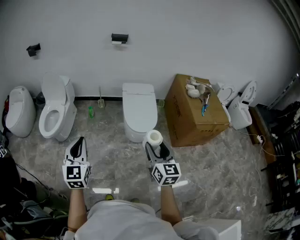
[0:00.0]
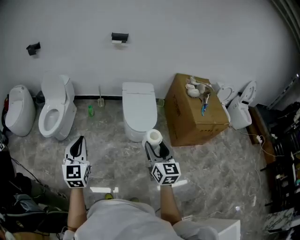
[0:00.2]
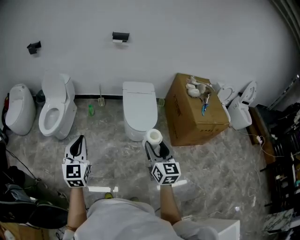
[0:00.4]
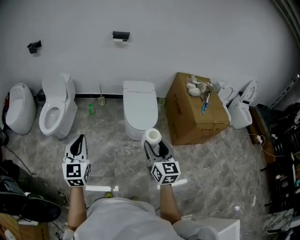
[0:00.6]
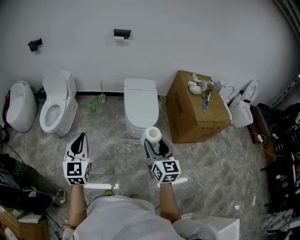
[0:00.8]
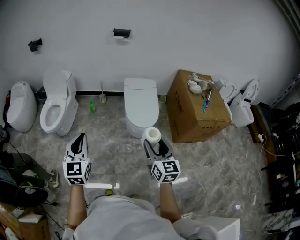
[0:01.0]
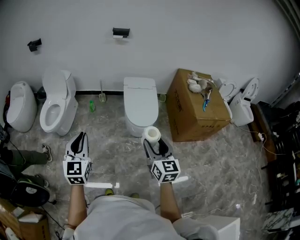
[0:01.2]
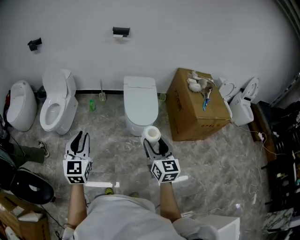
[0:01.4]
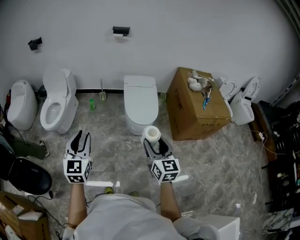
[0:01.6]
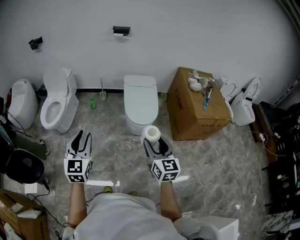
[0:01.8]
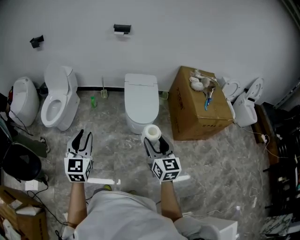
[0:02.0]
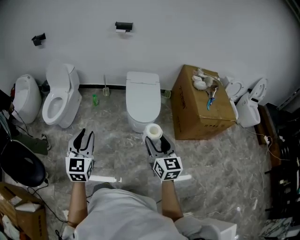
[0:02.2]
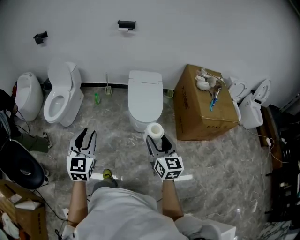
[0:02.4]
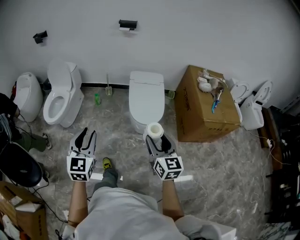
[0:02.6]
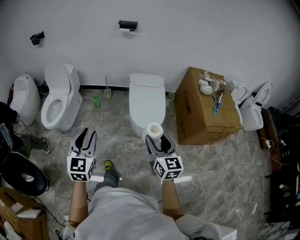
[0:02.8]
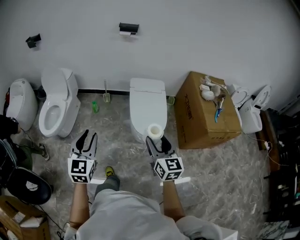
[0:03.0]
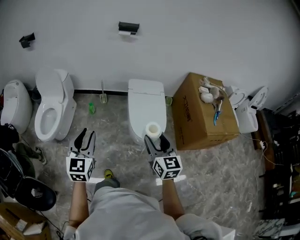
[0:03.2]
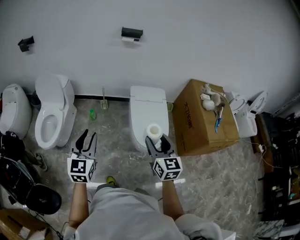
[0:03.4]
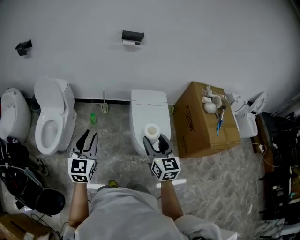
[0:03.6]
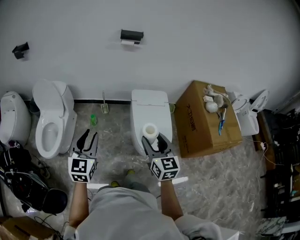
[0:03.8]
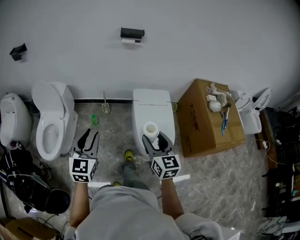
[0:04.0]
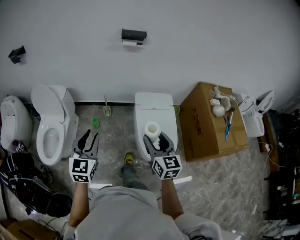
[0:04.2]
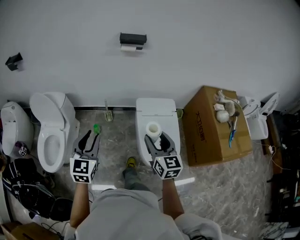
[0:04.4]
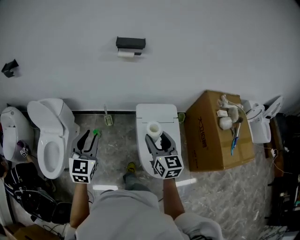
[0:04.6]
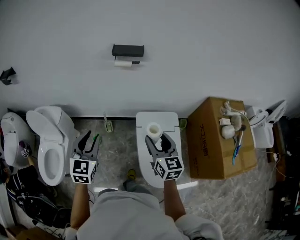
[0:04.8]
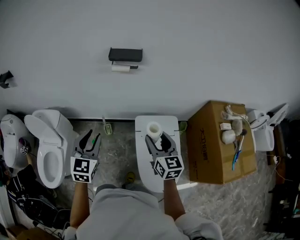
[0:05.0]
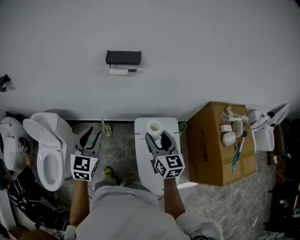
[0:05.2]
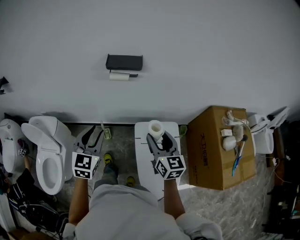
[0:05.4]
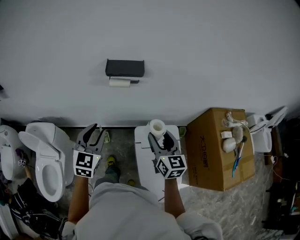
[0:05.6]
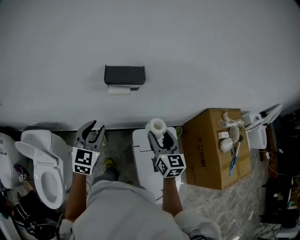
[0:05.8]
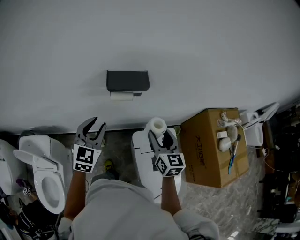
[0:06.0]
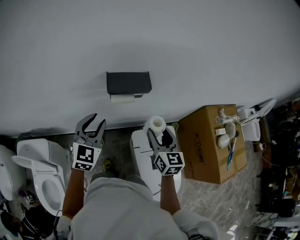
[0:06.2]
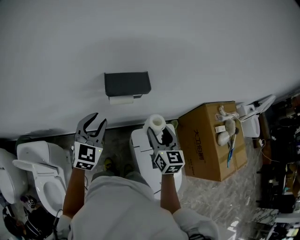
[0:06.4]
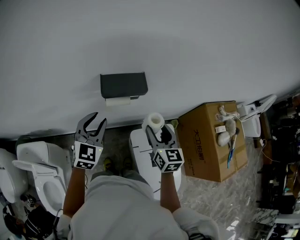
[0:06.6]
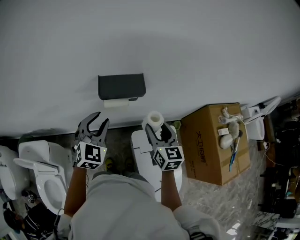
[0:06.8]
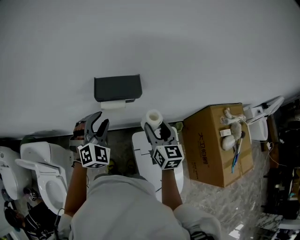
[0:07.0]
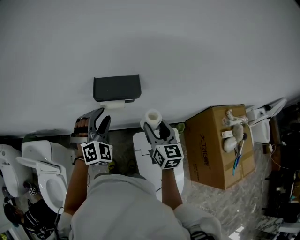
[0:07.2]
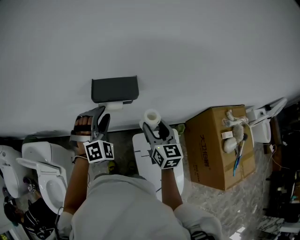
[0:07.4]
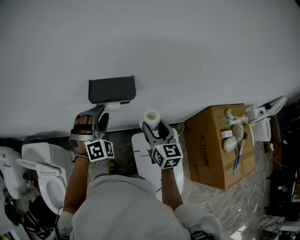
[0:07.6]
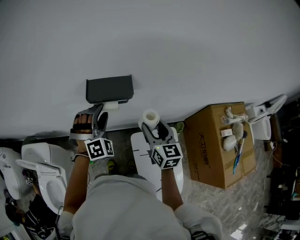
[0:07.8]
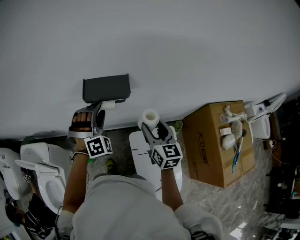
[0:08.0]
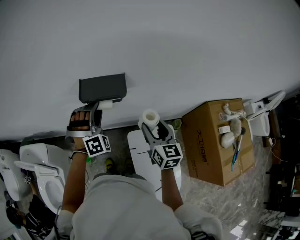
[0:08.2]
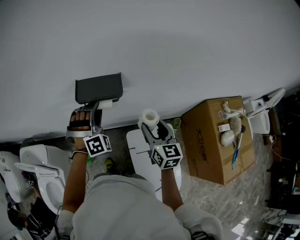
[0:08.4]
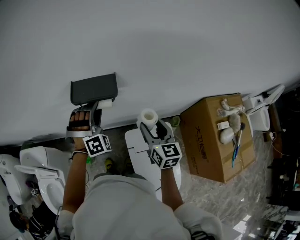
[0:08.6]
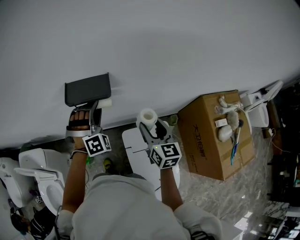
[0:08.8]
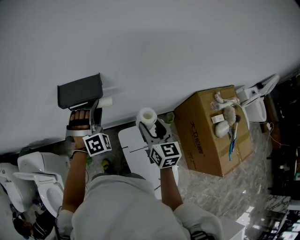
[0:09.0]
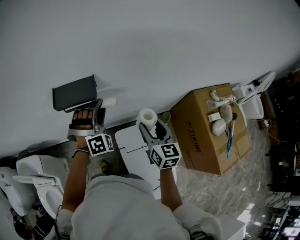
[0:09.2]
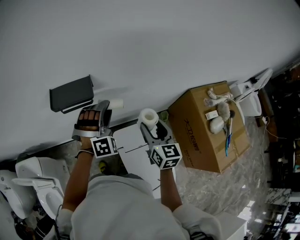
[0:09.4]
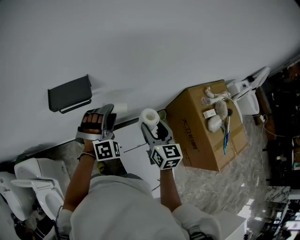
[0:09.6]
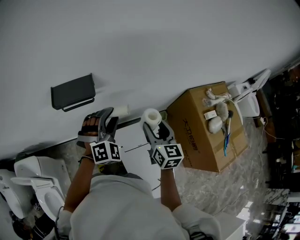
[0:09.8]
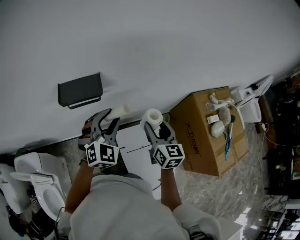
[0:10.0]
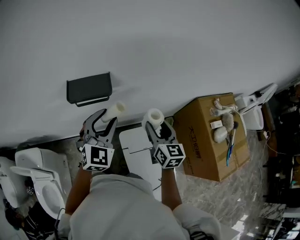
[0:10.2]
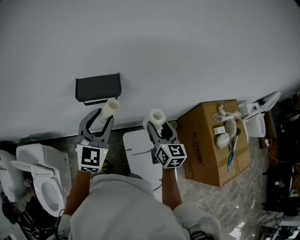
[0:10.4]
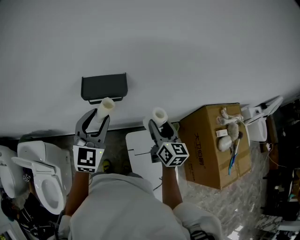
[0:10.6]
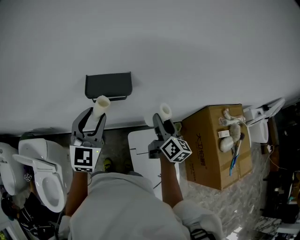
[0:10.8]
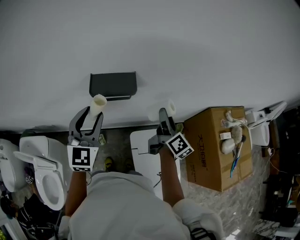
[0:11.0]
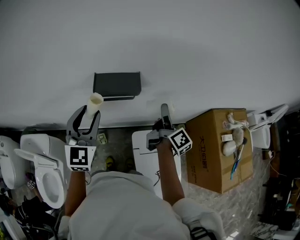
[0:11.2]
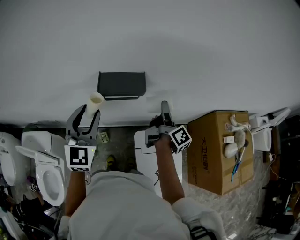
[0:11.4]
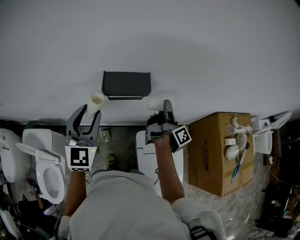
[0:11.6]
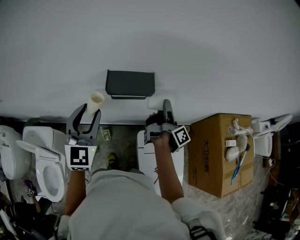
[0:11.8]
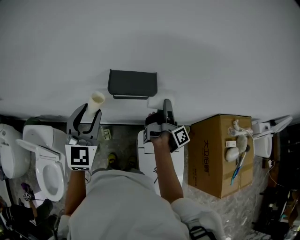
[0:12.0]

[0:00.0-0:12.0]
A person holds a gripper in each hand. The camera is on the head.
0:00.0 to 0:01.6: The left gripper opens up.
0:01.6 to 0:03.0: The two grippers go some 20 cm forward.
0:03.0 to 0:04.4: Both grippers move forward, roughly 40 cm.
0:04.4 to 0:06.0: The two grippers travel together, forward, some 50 cm.
0:06.0 to 0:07.6: The right gripper moves forward, some 10 cm. Meanwhile the left gripper heads forward and to the right, covering about 15 cm, and twists roughly 60 degrees clockwise, seen from behind.
0:07.6 to 0:09.0: Both grippers move to the right, about 10 cm.
0:09.0 to 0:10.4: The left gripper moves upward and backward, about 10 cm, travels to the right and back again, about 10 cm each way, and twists some 60 degrees counterclockwise, seen from behind.
0:10.4 to 0:12.0: The left gripper heads to the left, covering approximately 15 cm, while the right gripper goes roughly 10 cm to the left and forward, and twists some 80 degrees clockwise, seen from behind.

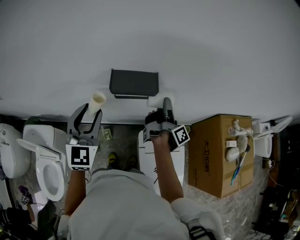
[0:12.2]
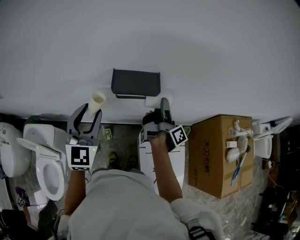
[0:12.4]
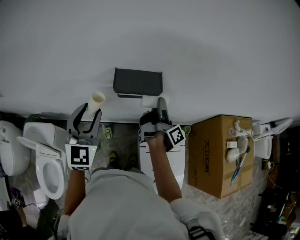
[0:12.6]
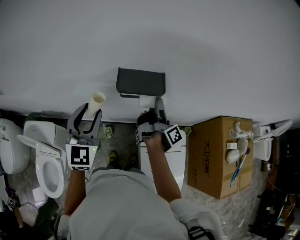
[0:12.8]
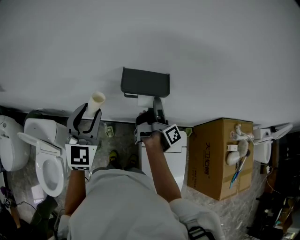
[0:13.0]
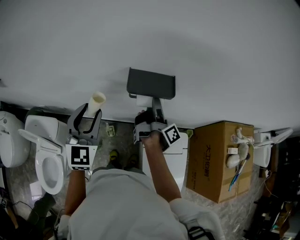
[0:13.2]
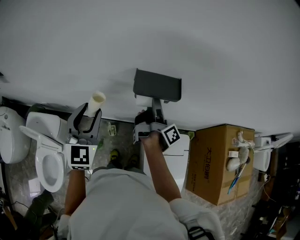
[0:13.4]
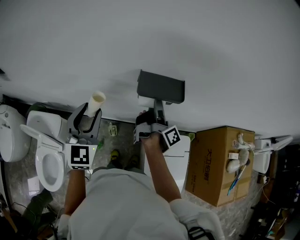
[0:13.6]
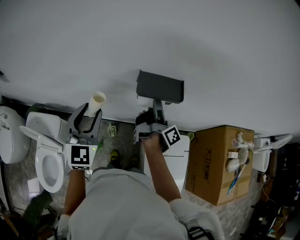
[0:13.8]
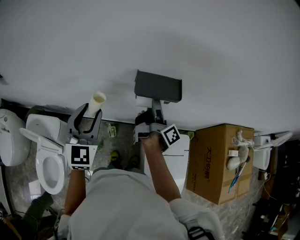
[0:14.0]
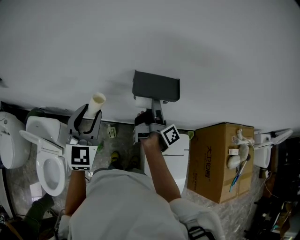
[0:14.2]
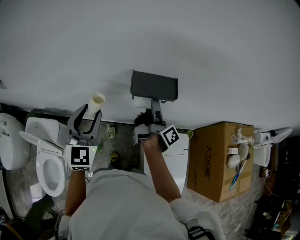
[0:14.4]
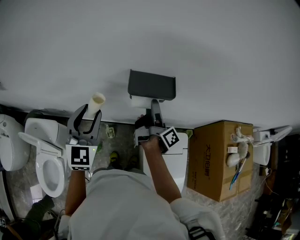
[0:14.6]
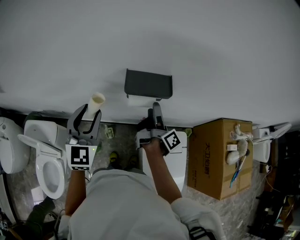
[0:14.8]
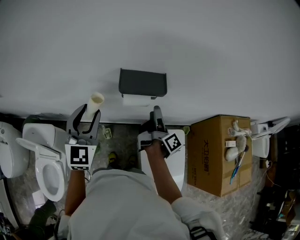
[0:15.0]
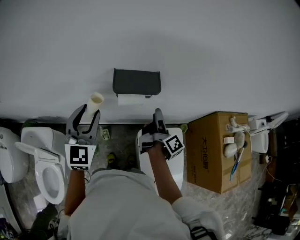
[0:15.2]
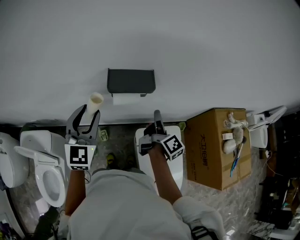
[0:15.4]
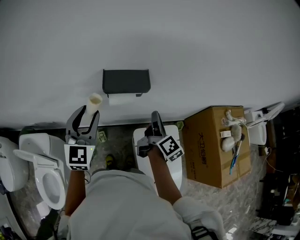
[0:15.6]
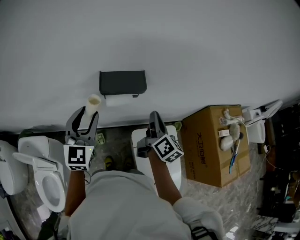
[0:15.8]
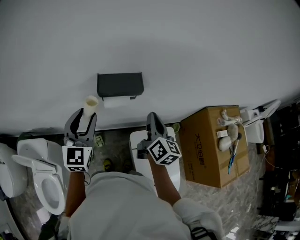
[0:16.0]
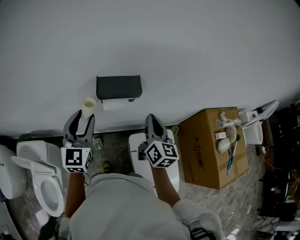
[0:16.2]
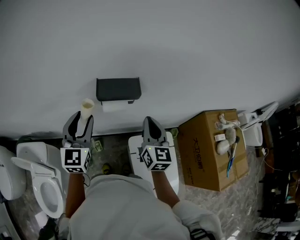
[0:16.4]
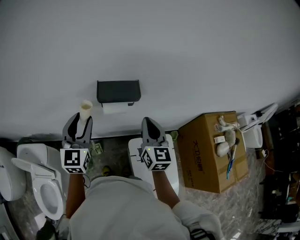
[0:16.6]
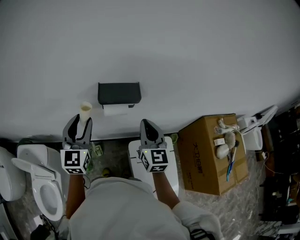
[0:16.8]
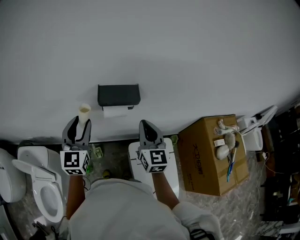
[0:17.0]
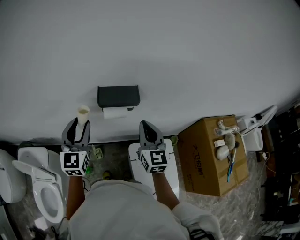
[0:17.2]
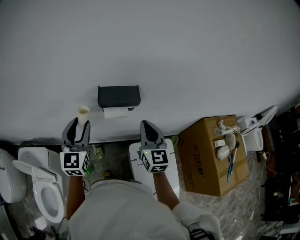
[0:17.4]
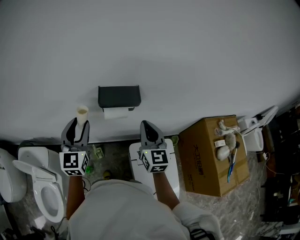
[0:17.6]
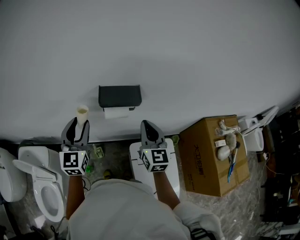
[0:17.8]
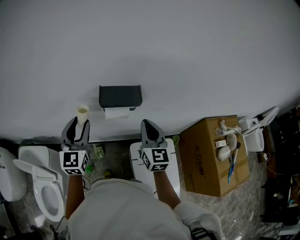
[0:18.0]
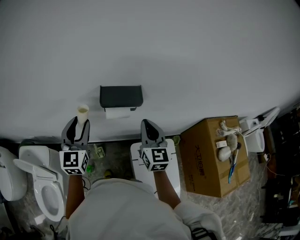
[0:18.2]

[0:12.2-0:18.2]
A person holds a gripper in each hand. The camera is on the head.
0:12.2 to 0:13.8: The right gripper heads to the left, covering about 15 cm; the left gripper moves to the left, roughly 10 cm.
0:13.8 to 0:15.2: The right gripper travels to the right and backward by roughly 10 cm. The left gripper goes approximately 5 cm to the right.
0:15.2 to 0:16.6: The right gripper shifts some 10 cm upward, twists roughly 80 degrees counterclockwise, seen from behind, and closes.
0:16.6 to 0:18.2: There are only small adjustments of the grippers.

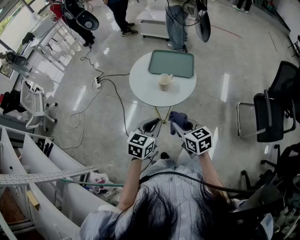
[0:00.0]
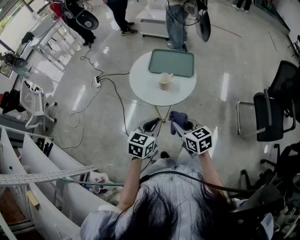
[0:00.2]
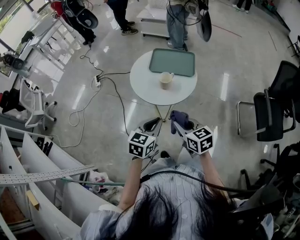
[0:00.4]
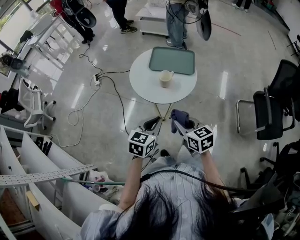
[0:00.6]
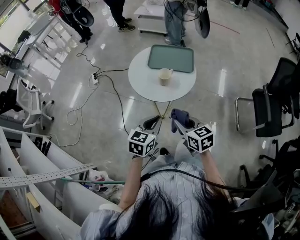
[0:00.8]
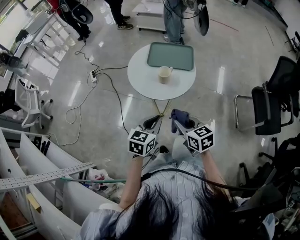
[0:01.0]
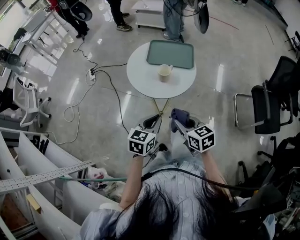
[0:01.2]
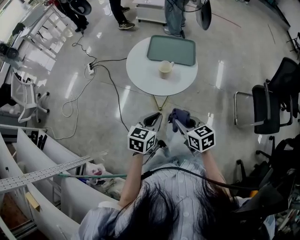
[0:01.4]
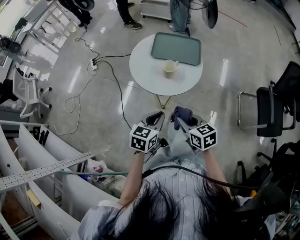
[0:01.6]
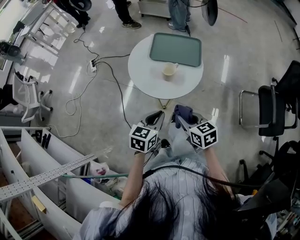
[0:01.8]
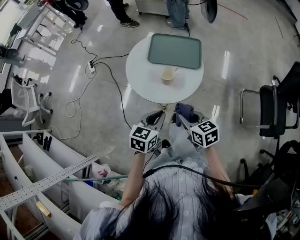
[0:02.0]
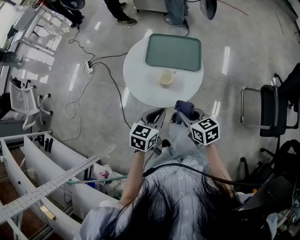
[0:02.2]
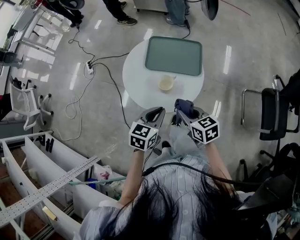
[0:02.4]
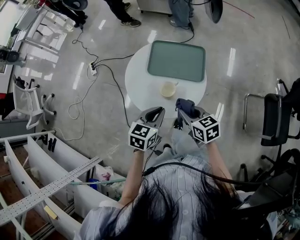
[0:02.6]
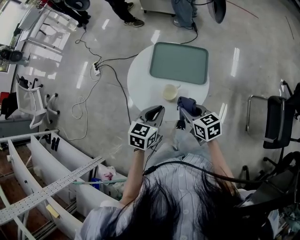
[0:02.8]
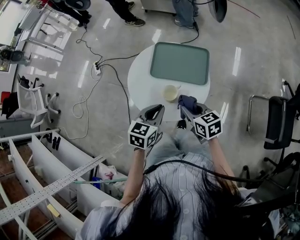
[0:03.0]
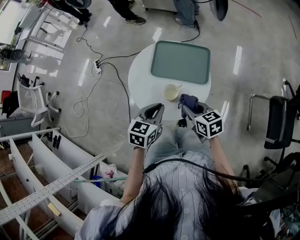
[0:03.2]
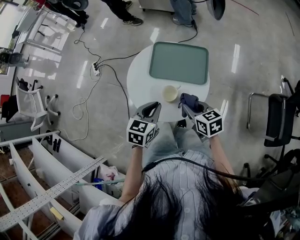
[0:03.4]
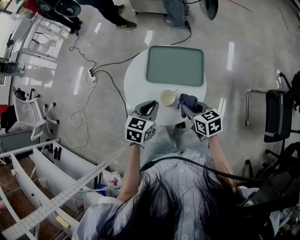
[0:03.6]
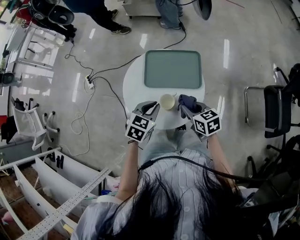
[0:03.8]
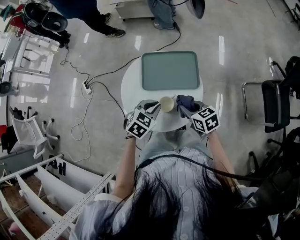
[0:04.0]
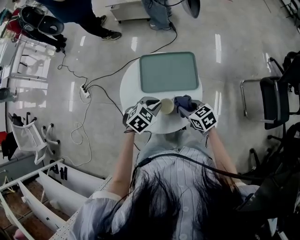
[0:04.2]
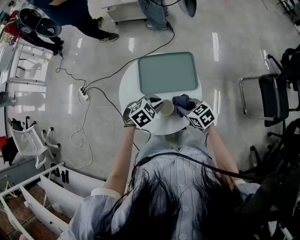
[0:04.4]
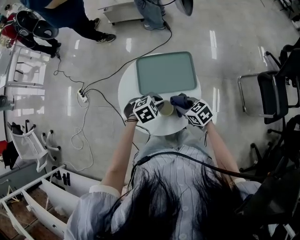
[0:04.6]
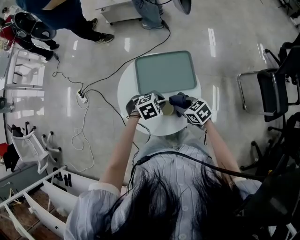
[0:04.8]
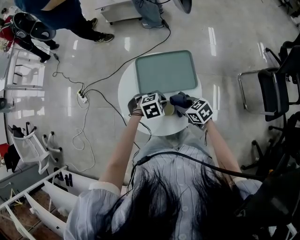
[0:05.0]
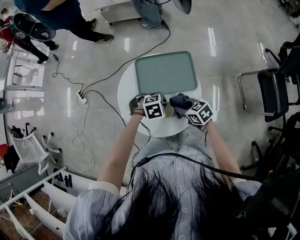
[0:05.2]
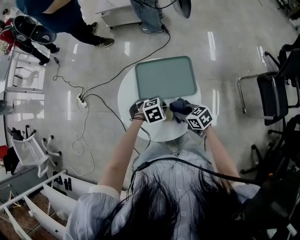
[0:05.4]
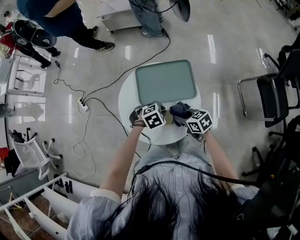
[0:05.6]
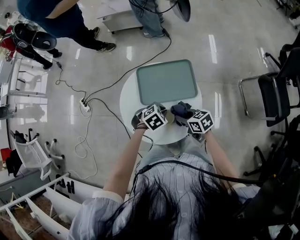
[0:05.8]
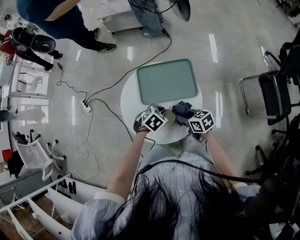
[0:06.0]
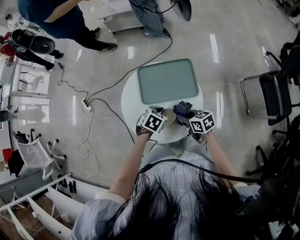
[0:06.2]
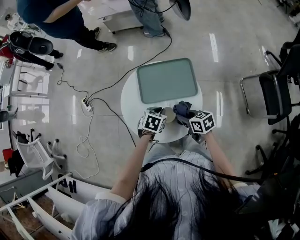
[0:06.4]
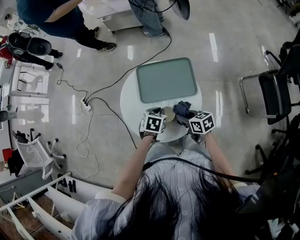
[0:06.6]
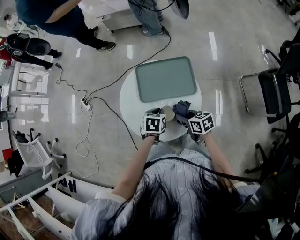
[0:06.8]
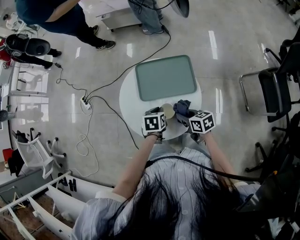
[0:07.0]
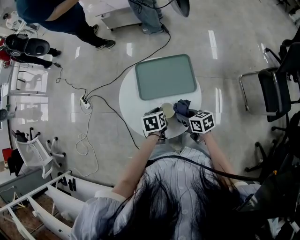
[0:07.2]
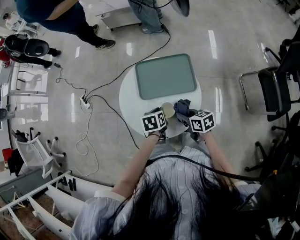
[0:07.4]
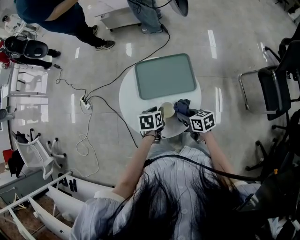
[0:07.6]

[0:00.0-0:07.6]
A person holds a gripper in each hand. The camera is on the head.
0:00.0 to 0:01.6: The grippers stay close to where they were, moving slightly.
0:01.6 to 0:03.0: The two grippers go about 20 cm forward.
0:03.0 to 0:04.6: The left gripper shifts by approximately 10 cm, and rotates roughly 70 degrees, while the right gripper changes place by roughly 10 cm.
0:04.6 to 0:06.0: The grippers make only small movements.
0:06.0 to 0:07.6: The left gripper rotates around the line of its fingers by approximately 50 degrees, counterclockwise from behind.
